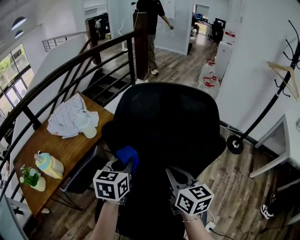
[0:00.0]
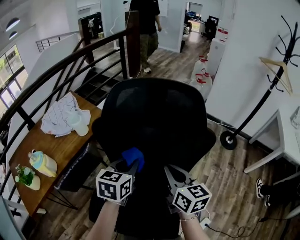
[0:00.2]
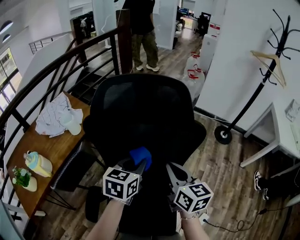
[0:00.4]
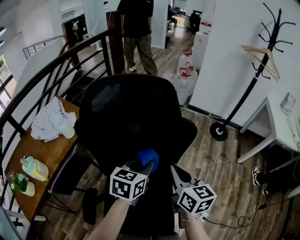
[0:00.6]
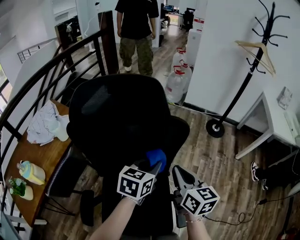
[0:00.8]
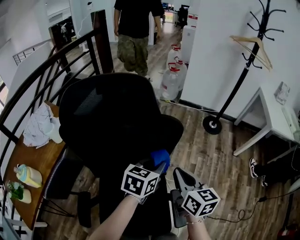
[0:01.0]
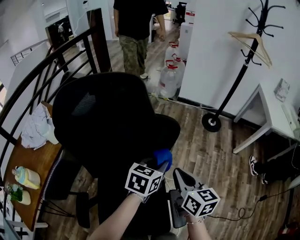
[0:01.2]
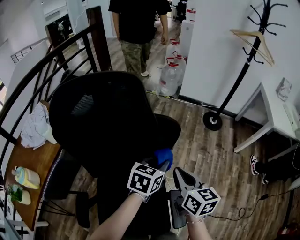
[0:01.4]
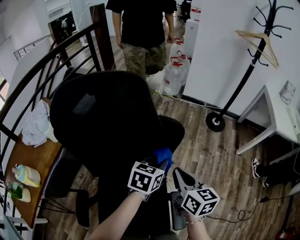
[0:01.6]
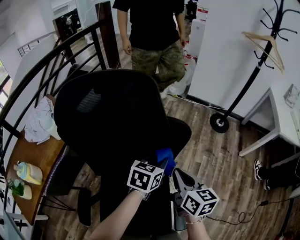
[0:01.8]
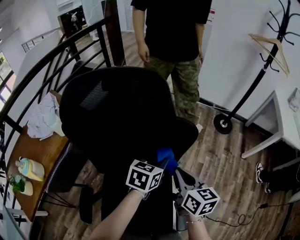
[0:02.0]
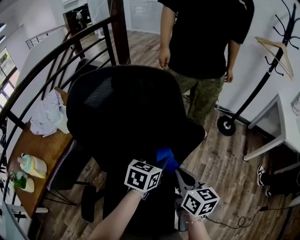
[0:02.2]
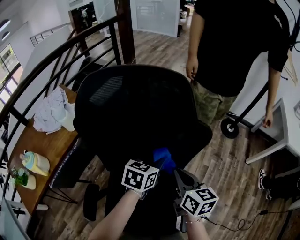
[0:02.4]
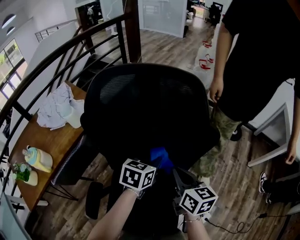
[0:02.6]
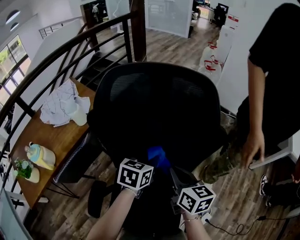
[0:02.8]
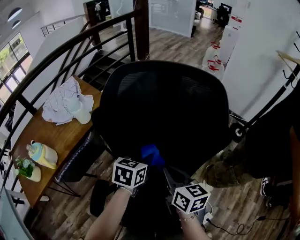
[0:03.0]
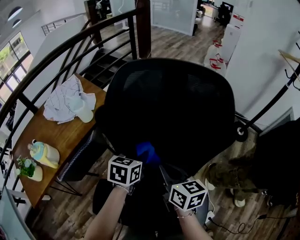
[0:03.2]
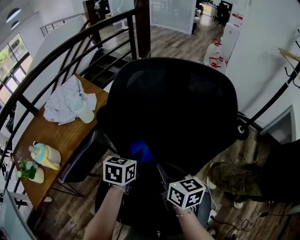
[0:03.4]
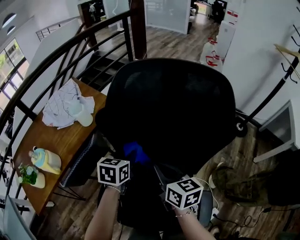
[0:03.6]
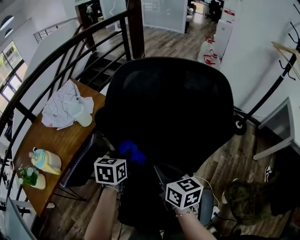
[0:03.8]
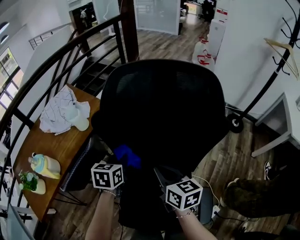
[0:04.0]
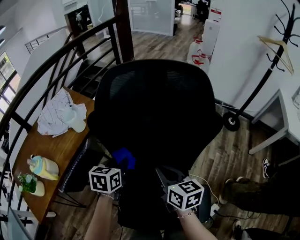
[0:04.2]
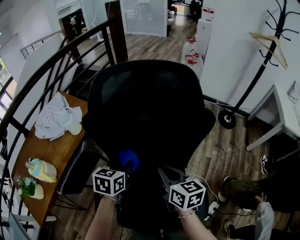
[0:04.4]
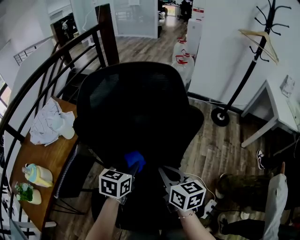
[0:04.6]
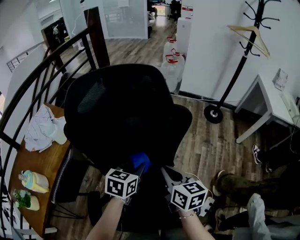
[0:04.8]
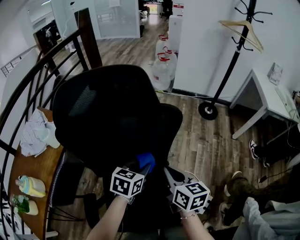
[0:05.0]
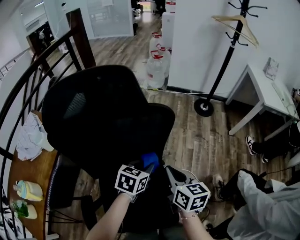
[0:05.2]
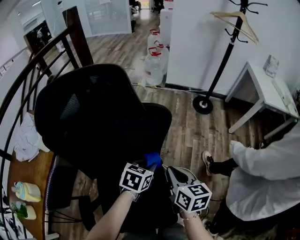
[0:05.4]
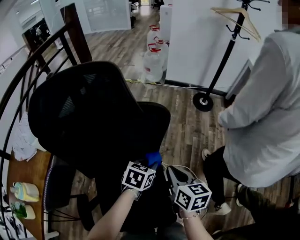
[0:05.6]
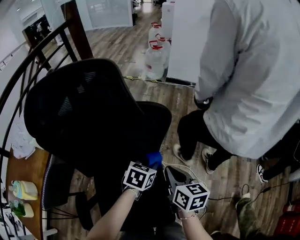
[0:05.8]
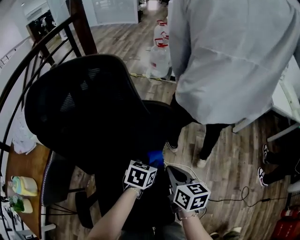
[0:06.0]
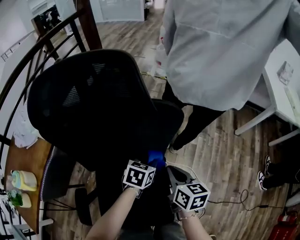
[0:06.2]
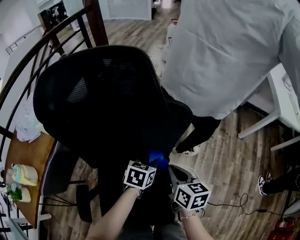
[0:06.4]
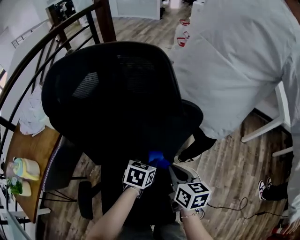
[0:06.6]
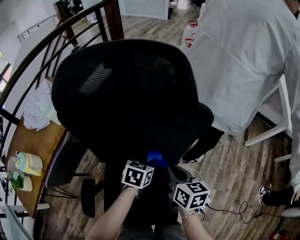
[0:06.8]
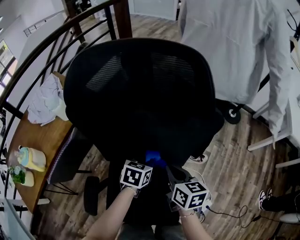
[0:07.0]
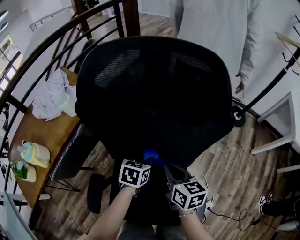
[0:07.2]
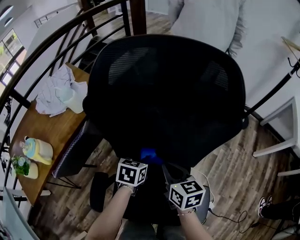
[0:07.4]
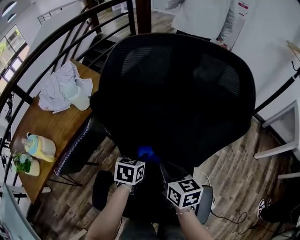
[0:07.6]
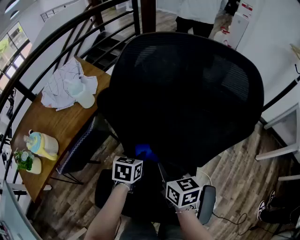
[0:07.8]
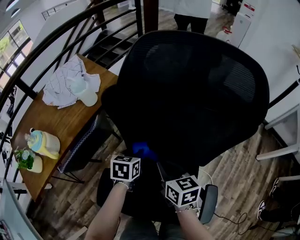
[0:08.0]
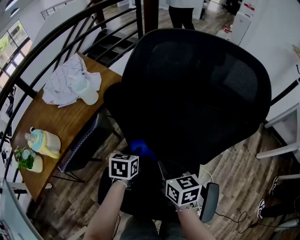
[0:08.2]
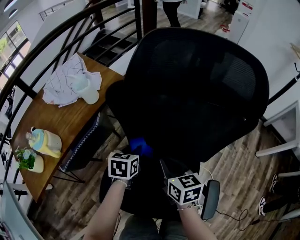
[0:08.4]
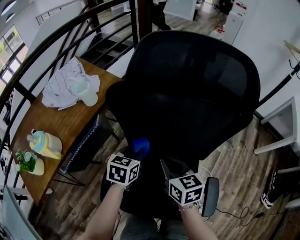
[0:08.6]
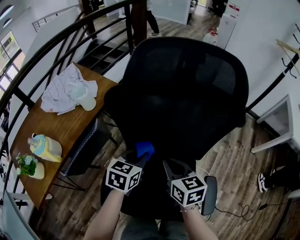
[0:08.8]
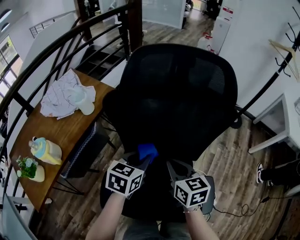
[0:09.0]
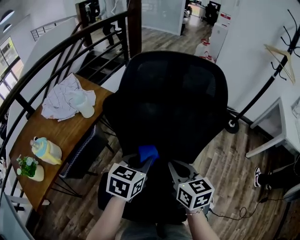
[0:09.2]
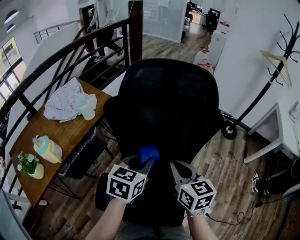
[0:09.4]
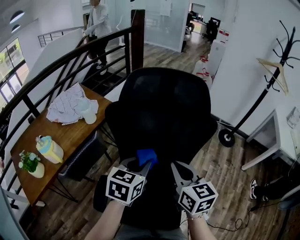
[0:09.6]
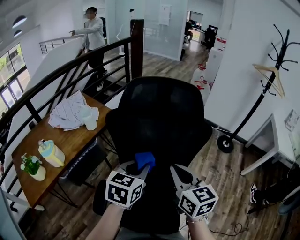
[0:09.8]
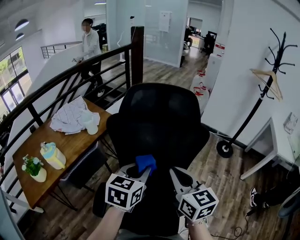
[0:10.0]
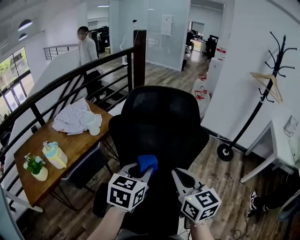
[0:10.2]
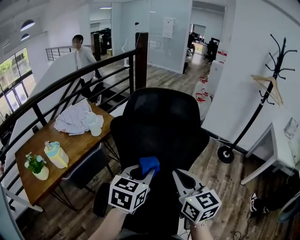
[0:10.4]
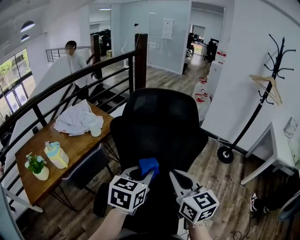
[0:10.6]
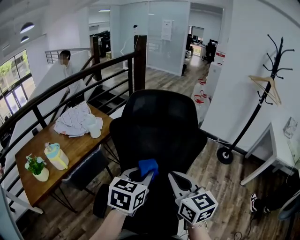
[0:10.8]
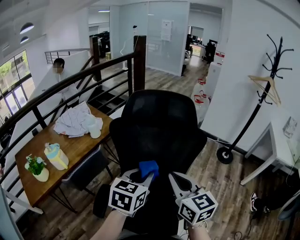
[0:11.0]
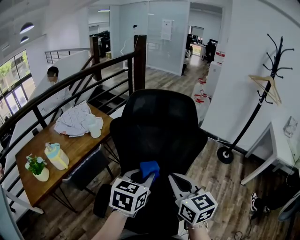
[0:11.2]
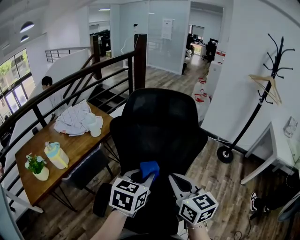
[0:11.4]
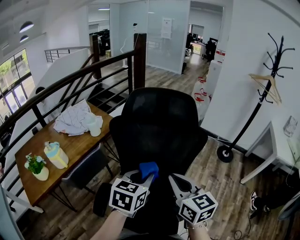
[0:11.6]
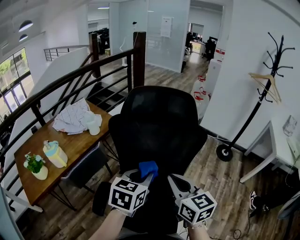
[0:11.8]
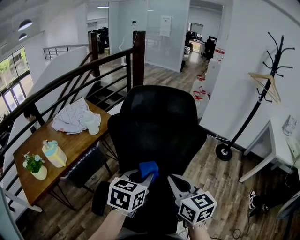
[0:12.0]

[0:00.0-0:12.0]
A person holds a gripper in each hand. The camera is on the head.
0:00.0 to 0:01.6: The left gripper shifts by roughly 35 cm, and swivels roughly 30 degrees, while the right gripper changes place by roughly 20 cm.
0:01.6 to 0:03.0: Both grippers travel together to the left, approximately 20 cm.
0:03.0 to 0:04.4: The left gripper travels to the left by roughly 5 cm.
0:04.4 to 0:06.0: The left gripper moves some 30 cm, and changes its angle by approximately 20 degrees. Meanwhile the right gripper changes place by roughly 20 cm.
0:06.0 to 0:07.6: The right gripper changes place by some 25 cm, and turns by roughly 30 degrees, while the left gripper changes place by roughly 25 cm, and rotates roughly 30 degrees.
0:07.6 to 0:09.0: The right gripper goes some 5 cm upward; the left gripper heads upward, covering roughly 10 cm.
0:09.0 to 0:10.4: The left gripper heads upward, backward and to the right, covering about 20 cm. Meanwhile the right gripper is displaced upward and backward by about 20 cm, and changes its angle by roughly 20 degrees.
0:10.4 to 0:12.0: The grippers make only small movements.

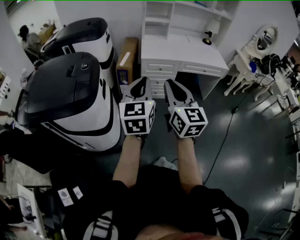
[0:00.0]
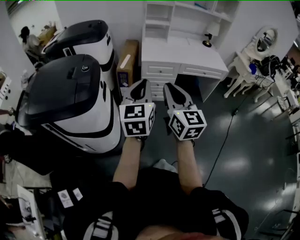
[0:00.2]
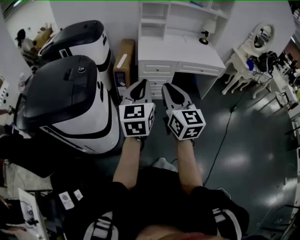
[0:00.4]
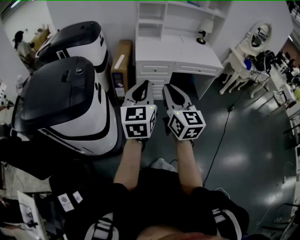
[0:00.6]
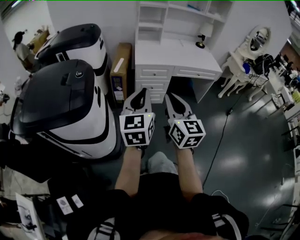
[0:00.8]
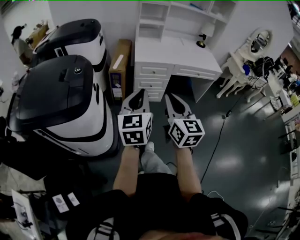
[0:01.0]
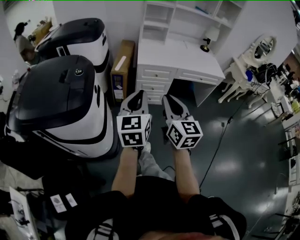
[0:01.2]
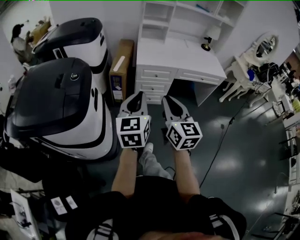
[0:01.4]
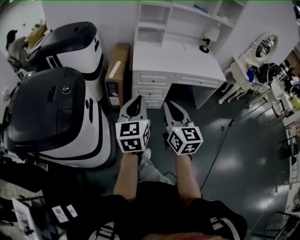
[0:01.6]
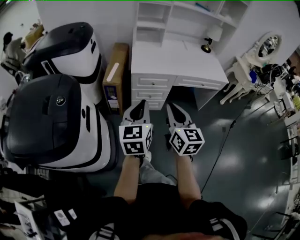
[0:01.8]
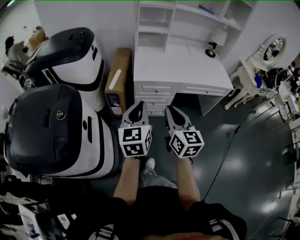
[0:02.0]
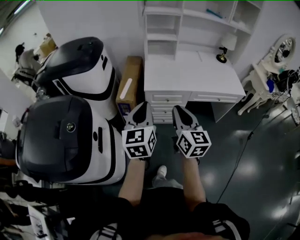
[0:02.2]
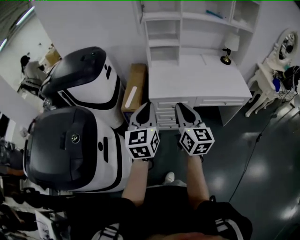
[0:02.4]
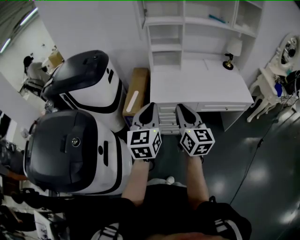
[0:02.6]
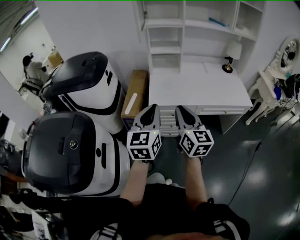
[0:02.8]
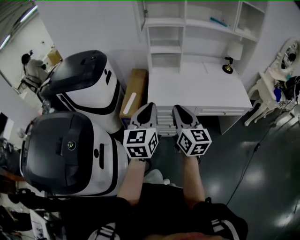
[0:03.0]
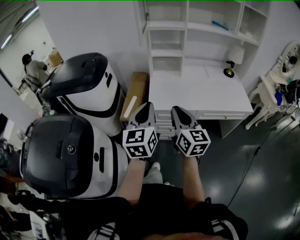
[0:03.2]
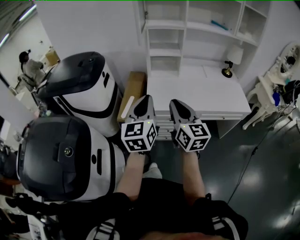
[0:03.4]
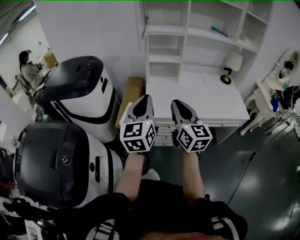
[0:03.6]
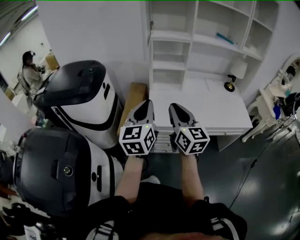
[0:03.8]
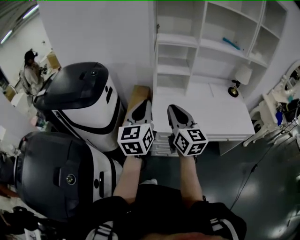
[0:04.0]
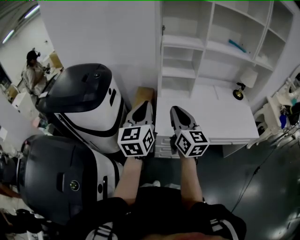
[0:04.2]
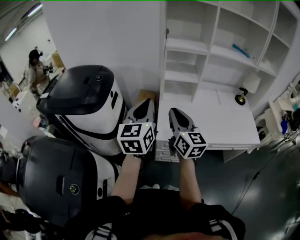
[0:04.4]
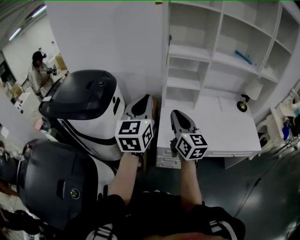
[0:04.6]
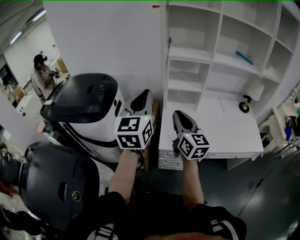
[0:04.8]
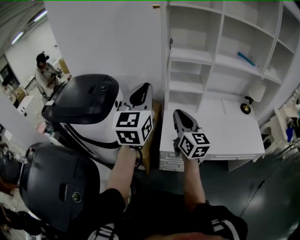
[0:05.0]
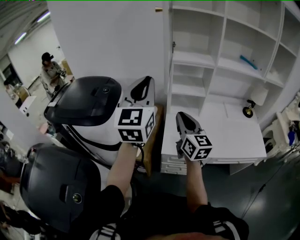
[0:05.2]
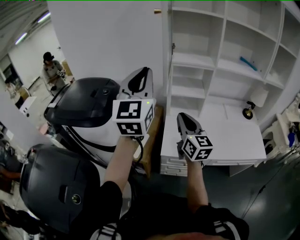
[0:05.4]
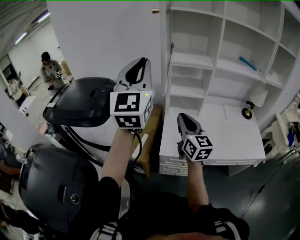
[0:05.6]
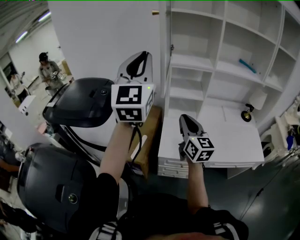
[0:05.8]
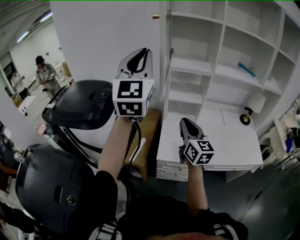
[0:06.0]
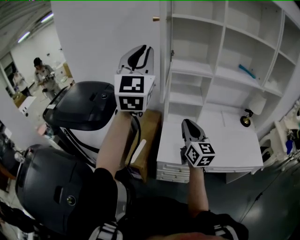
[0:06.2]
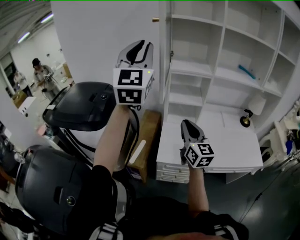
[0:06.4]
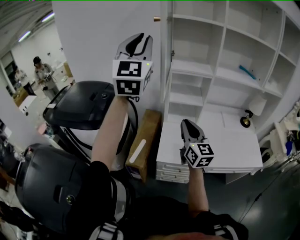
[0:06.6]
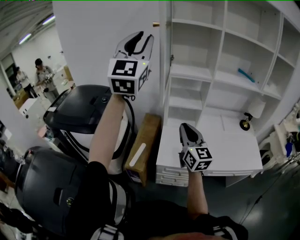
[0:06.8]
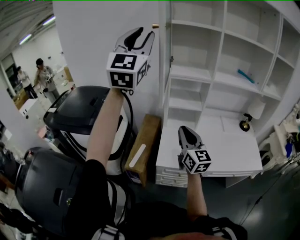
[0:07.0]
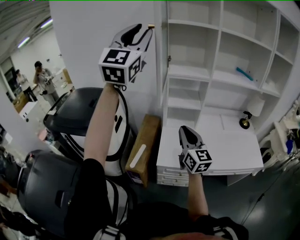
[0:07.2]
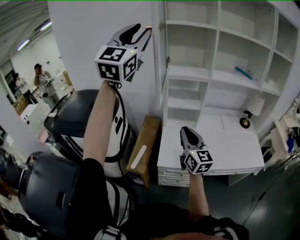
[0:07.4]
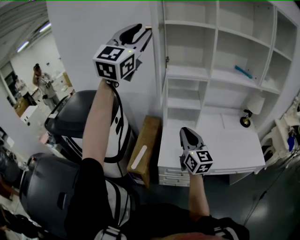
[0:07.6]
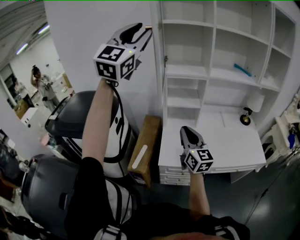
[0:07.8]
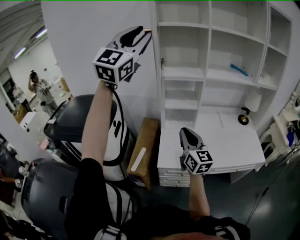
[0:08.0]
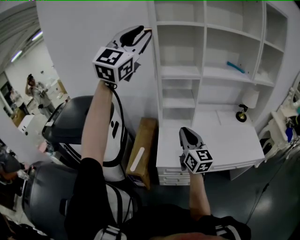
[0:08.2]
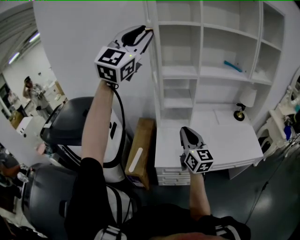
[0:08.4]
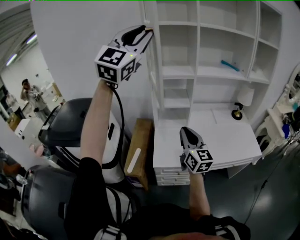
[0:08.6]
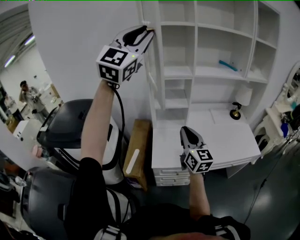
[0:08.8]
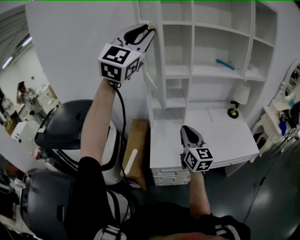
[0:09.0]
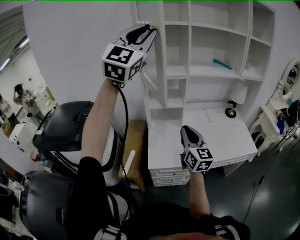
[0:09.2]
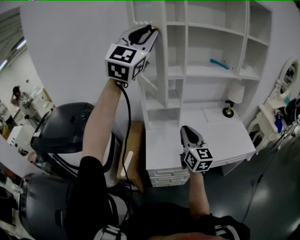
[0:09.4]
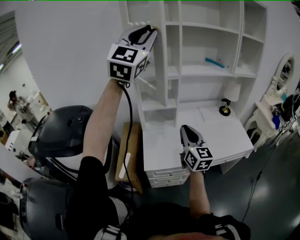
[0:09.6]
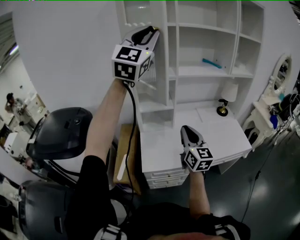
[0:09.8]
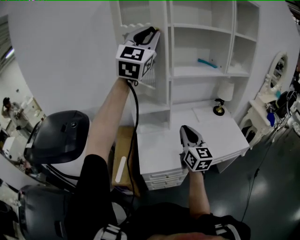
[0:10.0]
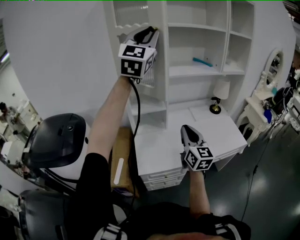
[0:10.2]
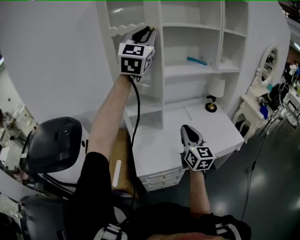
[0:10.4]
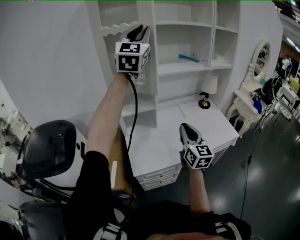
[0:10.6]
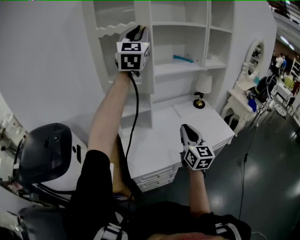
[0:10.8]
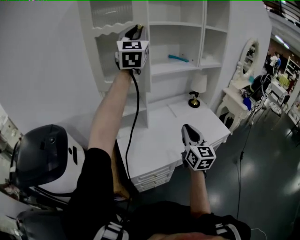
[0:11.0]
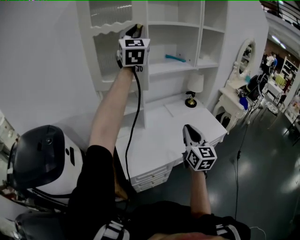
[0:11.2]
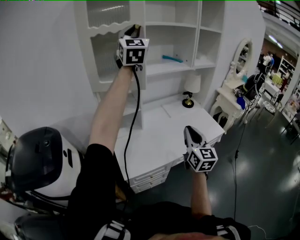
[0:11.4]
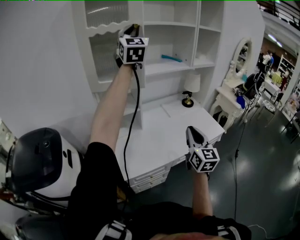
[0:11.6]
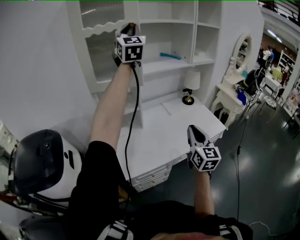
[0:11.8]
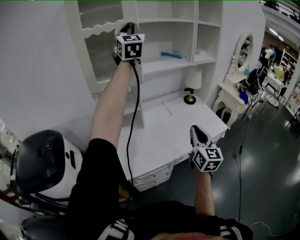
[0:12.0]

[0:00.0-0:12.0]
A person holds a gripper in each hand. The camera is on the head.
0:00.0 to 0:01.6: Both grippers move forward and downward, some 15 cm.
0:01.6 to 0:03.0: Both grippers travel together forward, approximately 25 cm.
0:03.0 to 0:04.4: Both grippers move forward, roughly 25 cm.
0:04.4 to 0:06.0: The right gripper travels forward and to the right by approximately 10 cm. Meanwhile the left gripper travels upward by approximately 25 cm, and turns by approximately 40 degrees.
0:06.0 to 0:07.6: The left gripper shifts some 10 cm upward, turns by approximately 20 degrees, and opens up.
0:07.6 to 0:09.0: The two grippers go some 10 cm to the right.
0:09.0 to 0:10.4: The left gripper heads forward and to the right, covering approximately 15 cm, while the right gripper heads to the right, covering about 10 cm.
0:10.4 to 0:12.0: The right gripper moves to the right, roughly 10 cm. The left gripper heads forward, covering about 10 cm.
